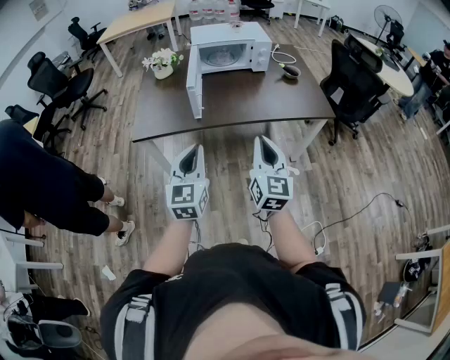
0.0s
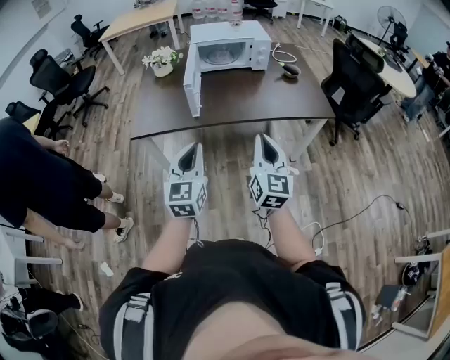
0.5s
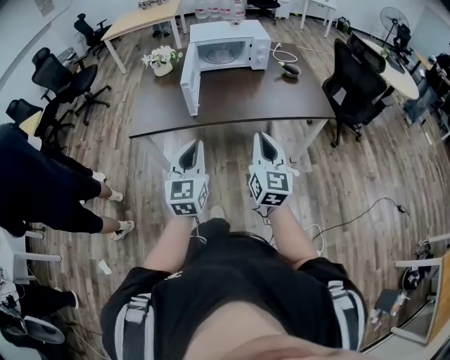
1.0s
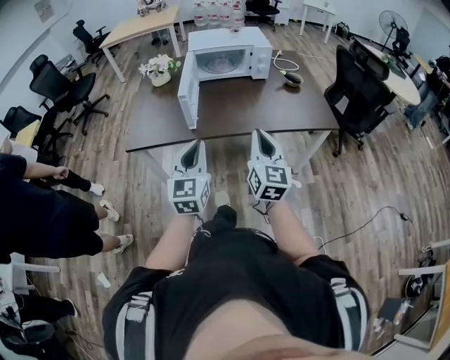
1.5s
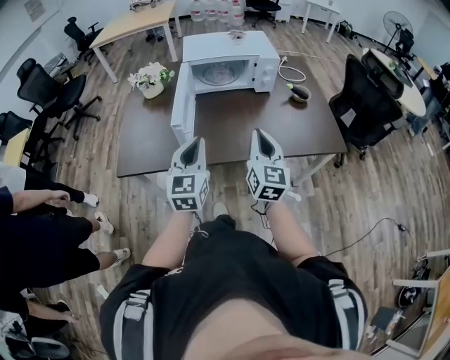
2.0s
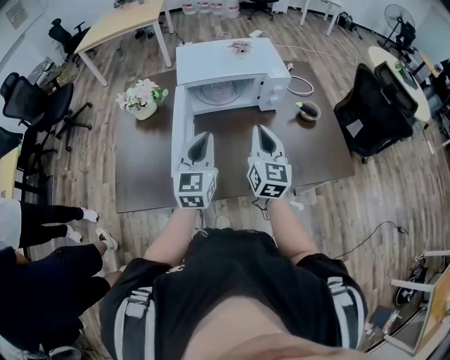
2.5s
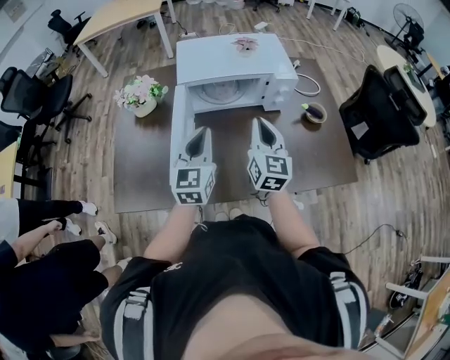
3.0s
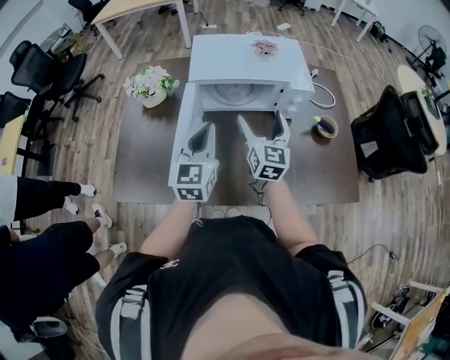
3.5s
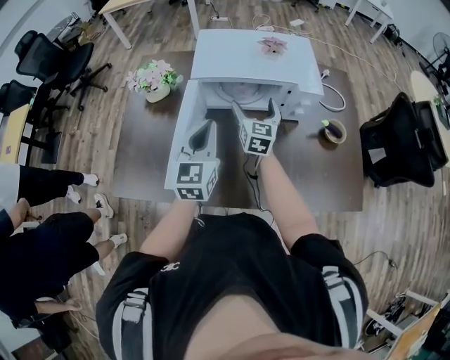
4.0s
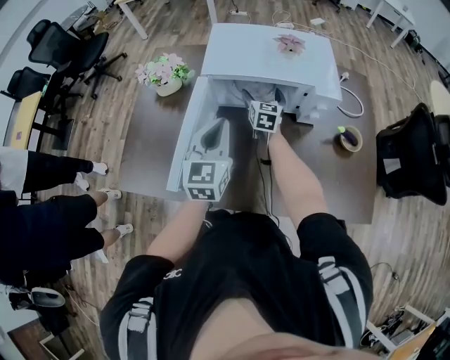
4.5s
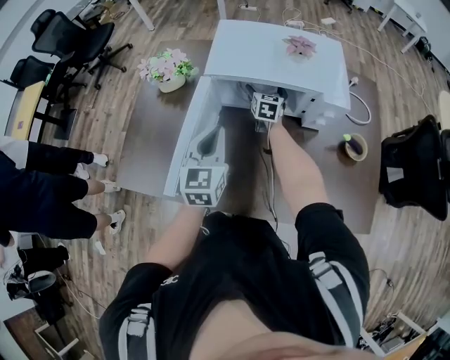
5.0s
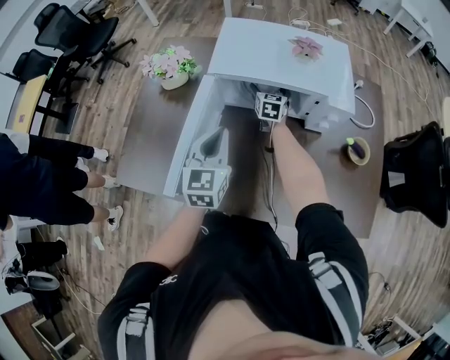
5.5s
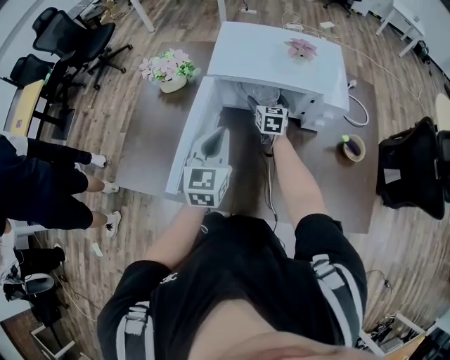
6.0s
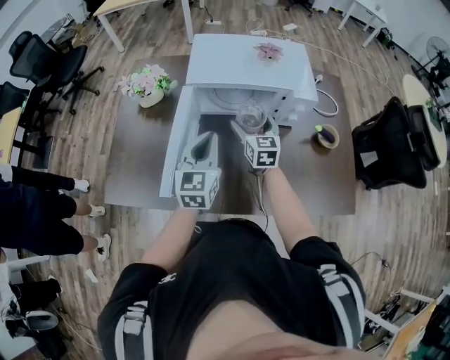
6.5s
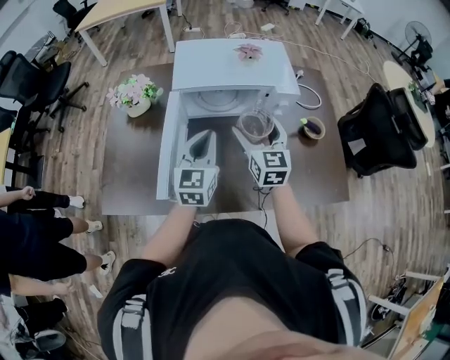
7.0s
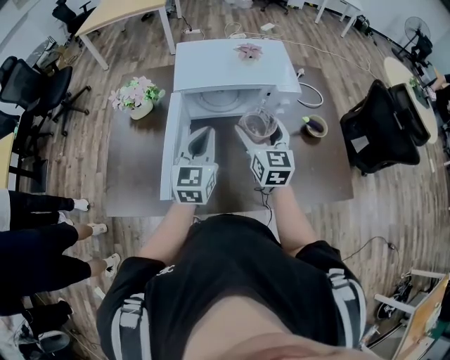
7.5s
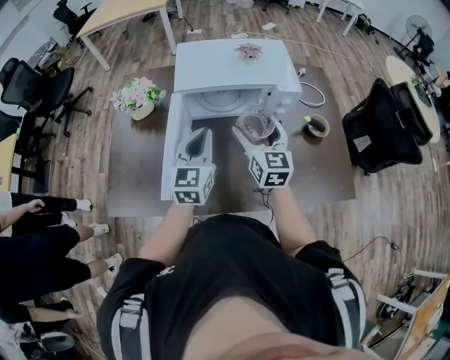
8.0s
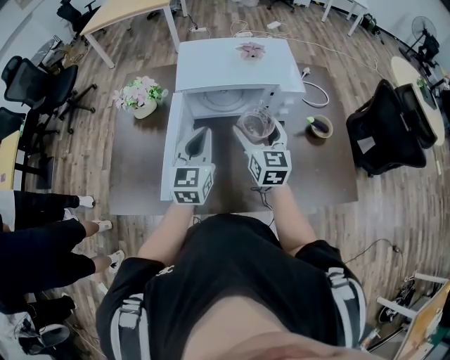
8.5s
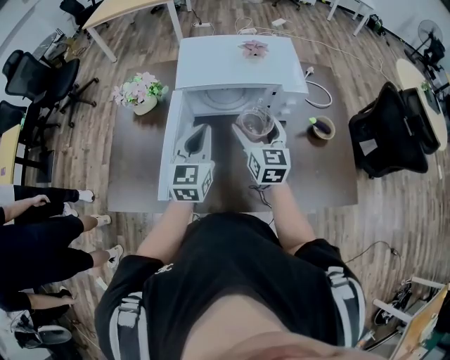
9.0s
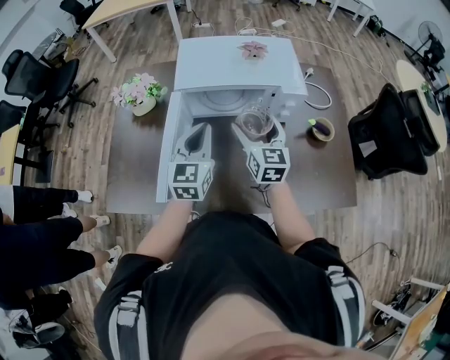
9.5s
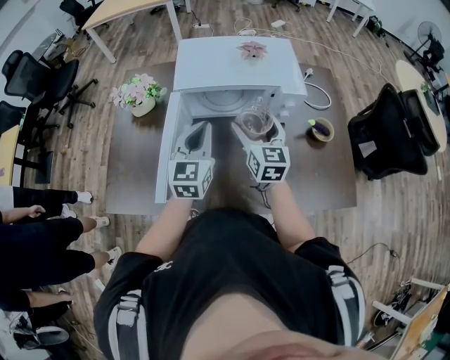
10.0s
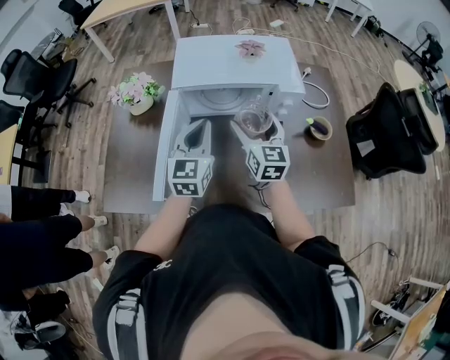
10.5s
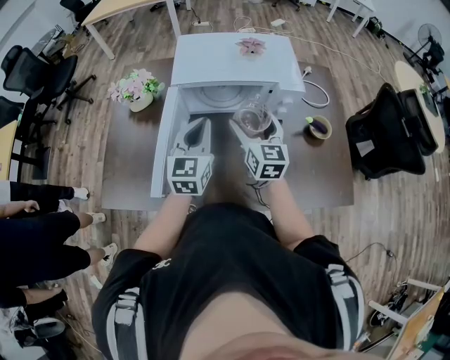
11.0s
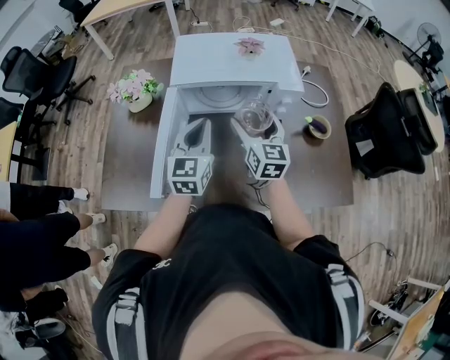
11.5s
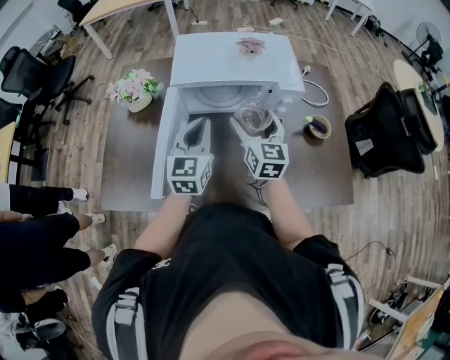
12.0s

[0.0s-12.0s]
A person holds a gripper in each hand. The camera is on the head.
0.0s to 2.0s: The grippers both shift forward by approximately 30 cm.
2.0s to 4.0s: Both grippers move forward, approximately 40 cm. The right gripper opens its fingers.
4.0s to 6.0s: The left gripper travels downward by some 5 cm; the right gripper is displaced downward and forward by some 15 cm.
6.0s to 8.0s: The left gripper moves roughly 5 cm, while the right gripper travels backward and upward by about 30 cm.
8.0s to 10.0s: There are only small adjustments of the grippers.
10.0s to 12.0s: The two grippers keep their place.

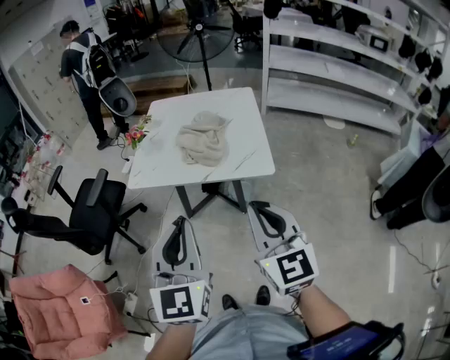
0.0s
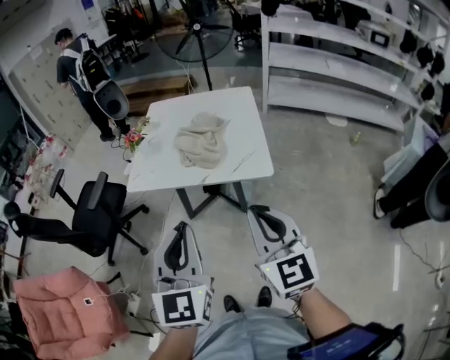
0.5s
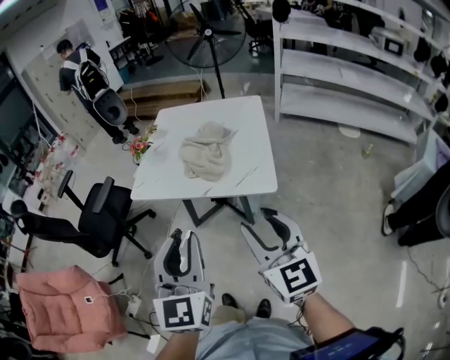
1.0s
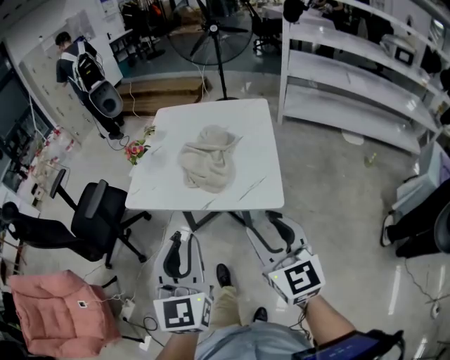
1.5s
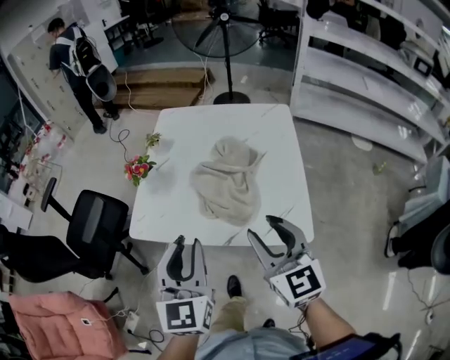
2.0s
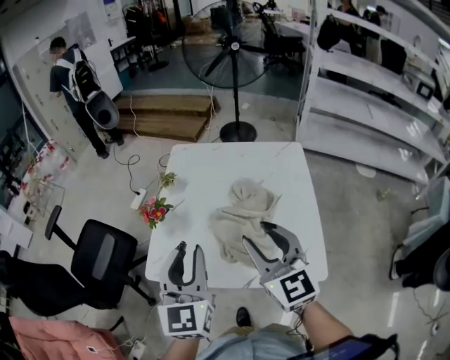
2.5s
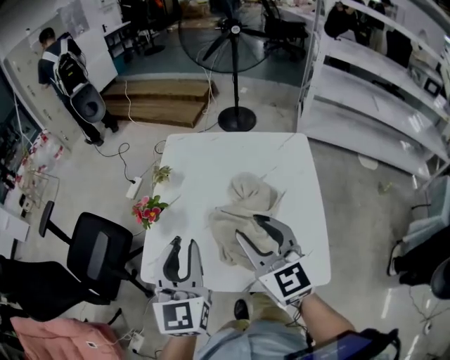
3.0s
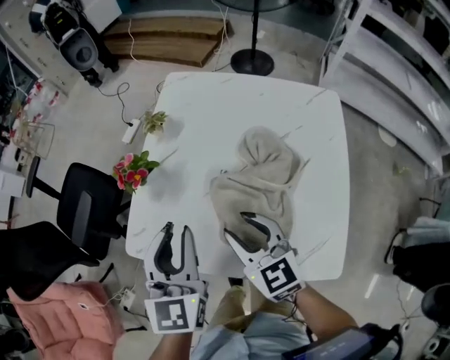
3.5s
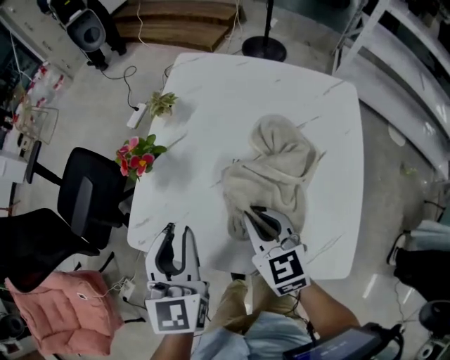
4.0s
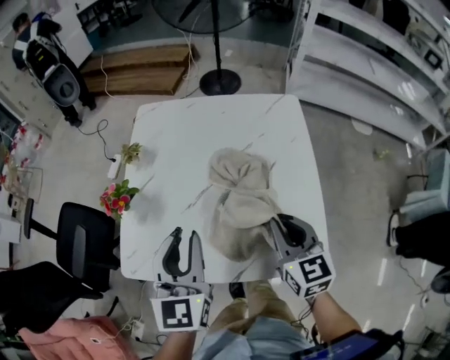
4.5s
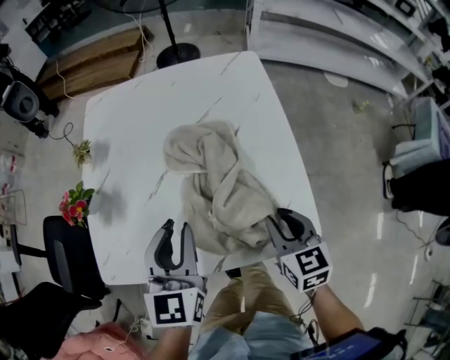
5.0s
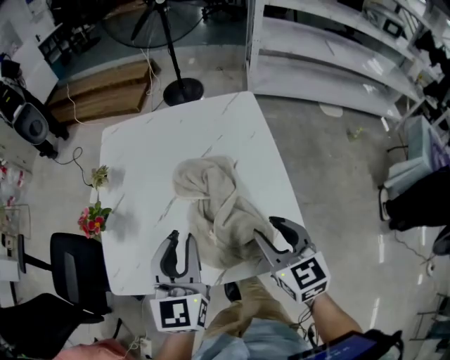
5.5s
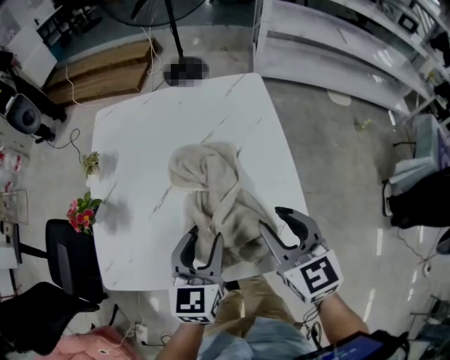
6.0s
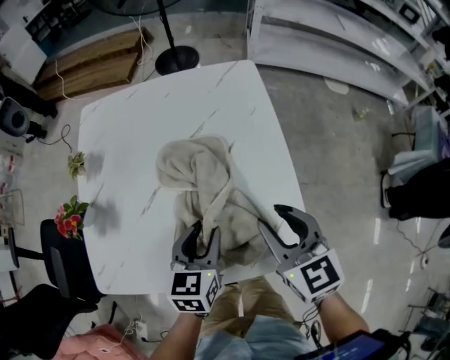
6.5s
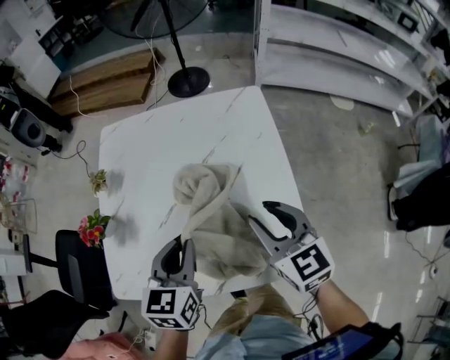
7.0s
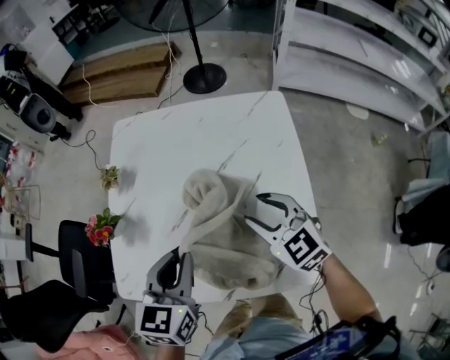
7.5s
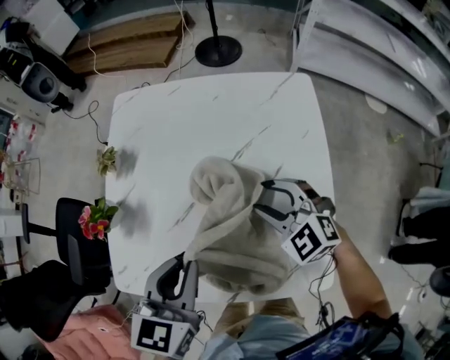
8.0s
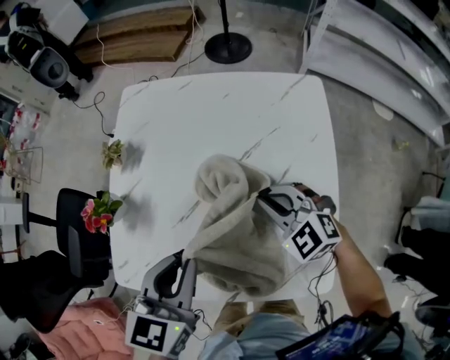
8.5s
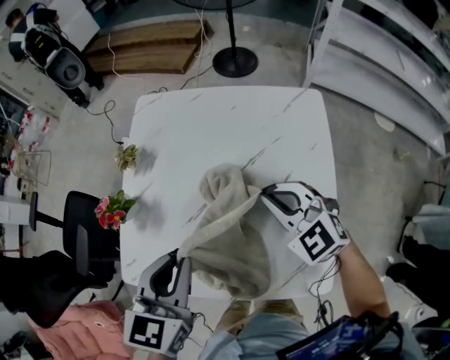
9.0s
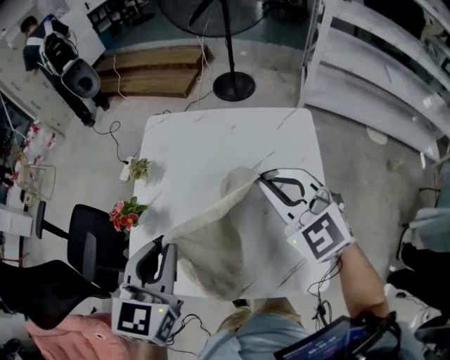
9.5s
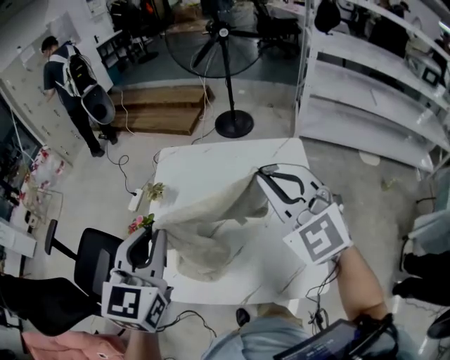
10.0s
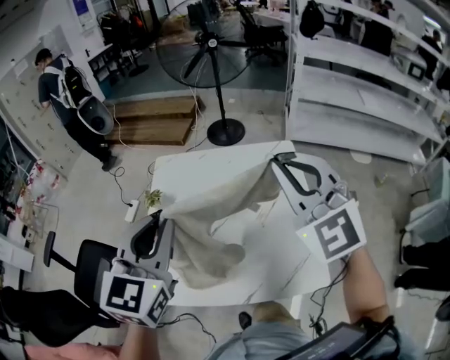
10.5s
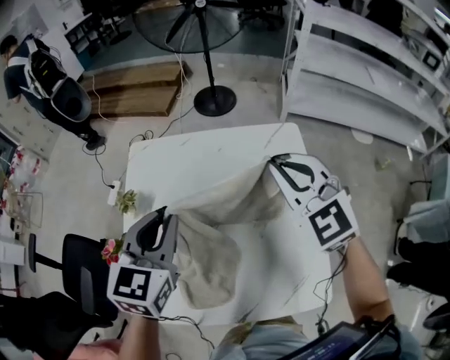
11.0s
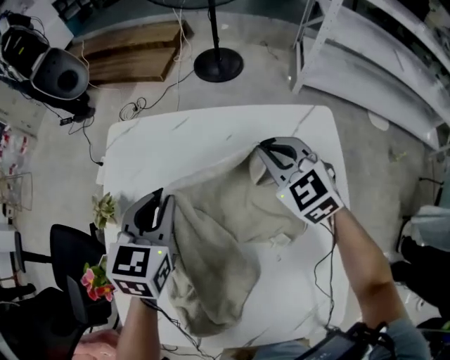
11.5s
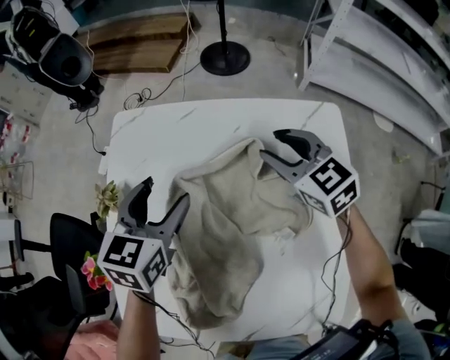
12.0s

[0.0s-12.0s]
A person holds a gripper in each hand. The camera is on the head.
0.0s to 2.0s: The two grippers go approximately 30 cm forward. The right gripper opens its fingers.
2.0s to 4.0s: Both grippers move forward and downward, roughly 25 cm. The right gripper turns by roughly 20 degrees, and closes its fingers.
4.0s to 6.0s: The right gripper goes up and down, roughly 10 cm each way, reversing 2 times, changes its angle by about 20 degrees, and opens up, while the left gripper moves up and down over roughly 10 cm, changing direction 3 times, and turns by approximately 30 degrees.
6.0s to 8.0s: The right gripper goes roughly 20 cm forward, downward and to the left, and swivels roughly 50 degrees. Meanwhile the left gripper travels to the left by some 10 cm, and closes its fingers.
8.0s to 10.0s: The right gripper shifts roughly 30 cm upward, turns by approximately 30 degrees, and closes its fingers. The left gripper shifts approximately 20 cm upward and to the left, and changes its angle by some 30 degrees.
10.0s to 12.0s: The grippers both shift downward and forward by approximately 40 cm. The right gripper swivels some 40 degrees, and opens, while the left gripper turns by roughly 20 degrees, and opens.

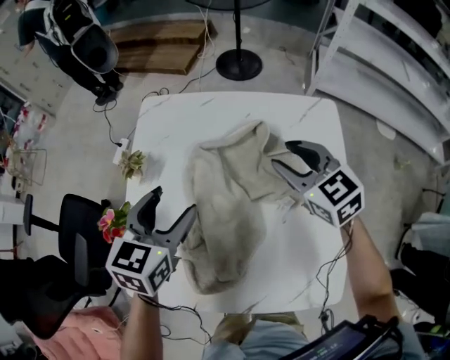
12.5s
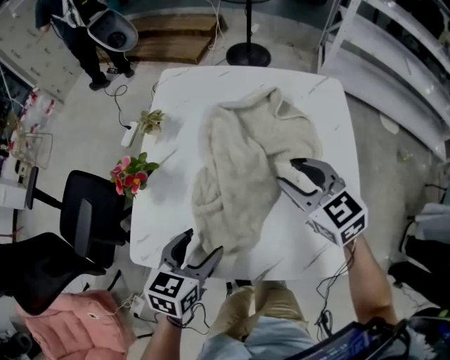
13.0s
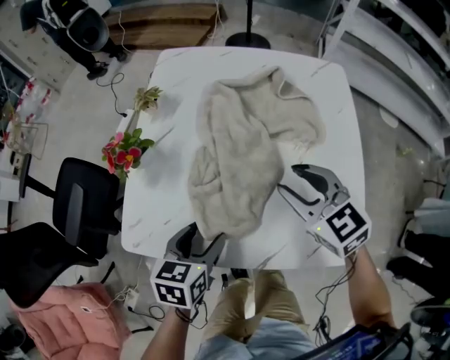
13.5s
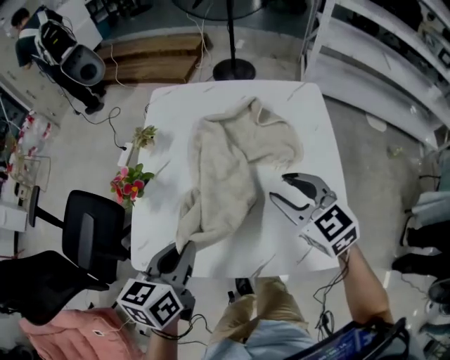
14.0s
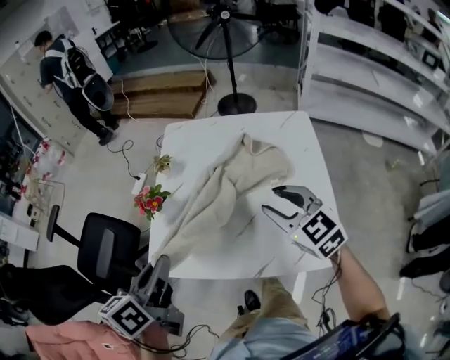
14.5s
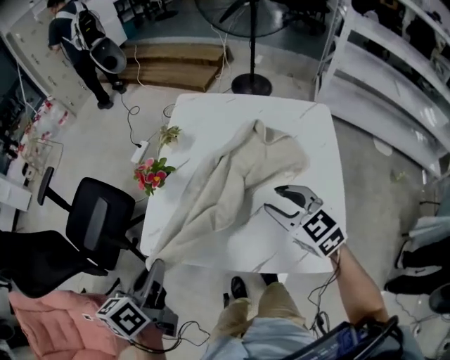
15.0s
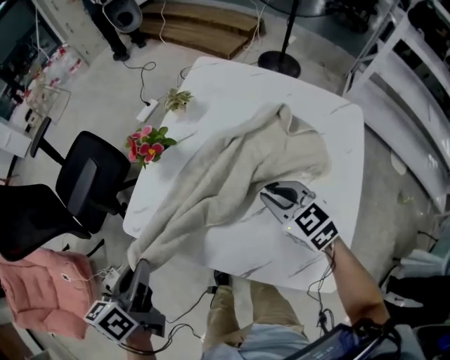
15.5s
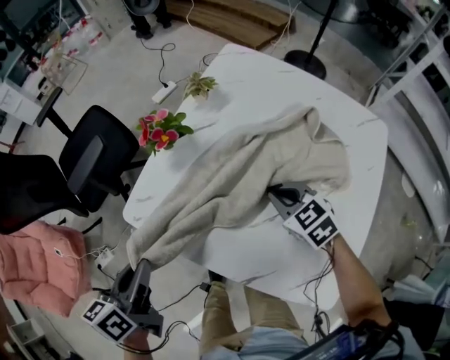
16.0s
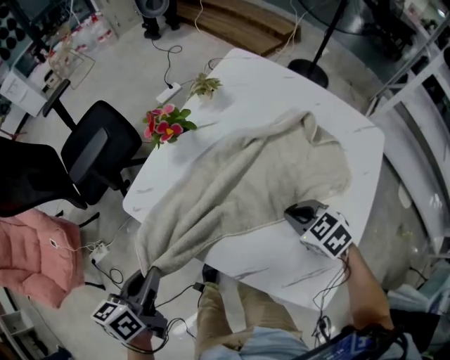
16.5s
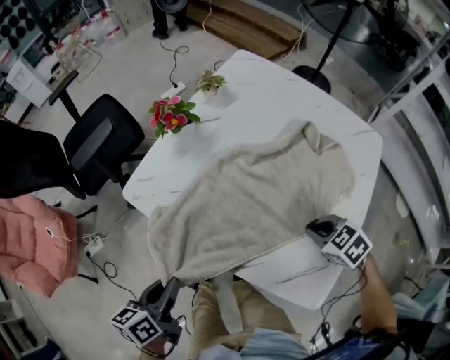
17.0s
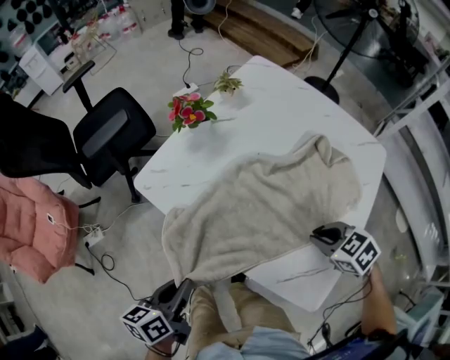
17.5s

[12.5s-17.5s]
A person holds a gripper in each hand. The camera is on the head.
12.5s to 15.0s: The grippers both shift backward and to the left by roughly 30 cm. The left gripper twists approximately 40 degrees counterclockwise, seen from behind, and closes.
15.0s to 17.5s: The right gripper is displaced downward by approximately 15 cm, rotates approximately 40 degrees, and closes its fingers, while the left gripper ends up some 25 cm from where it was.
